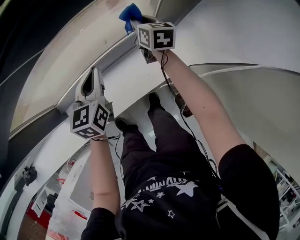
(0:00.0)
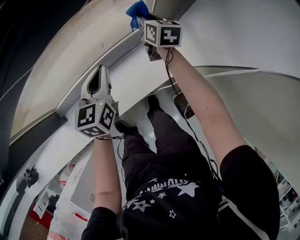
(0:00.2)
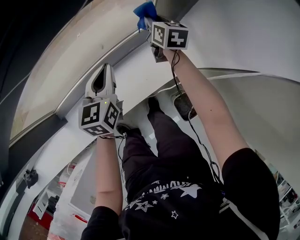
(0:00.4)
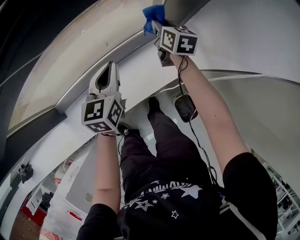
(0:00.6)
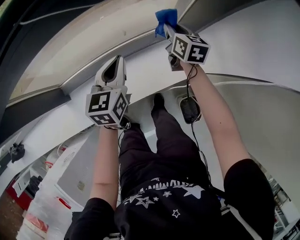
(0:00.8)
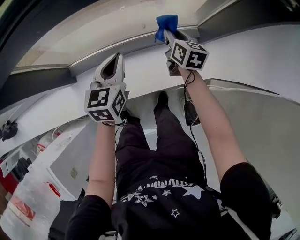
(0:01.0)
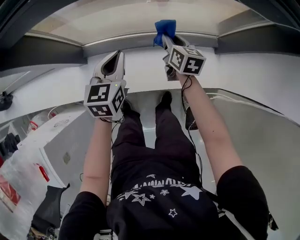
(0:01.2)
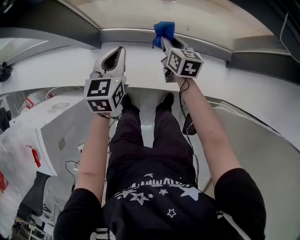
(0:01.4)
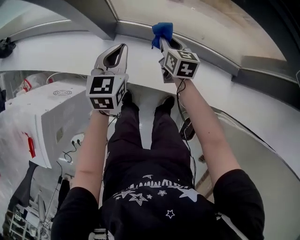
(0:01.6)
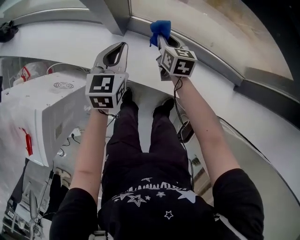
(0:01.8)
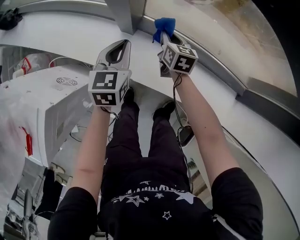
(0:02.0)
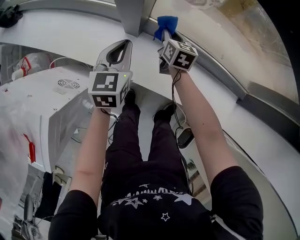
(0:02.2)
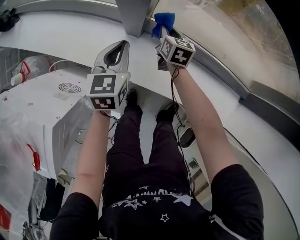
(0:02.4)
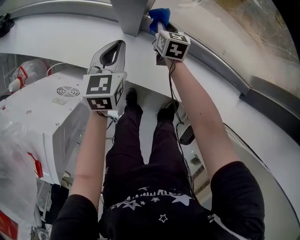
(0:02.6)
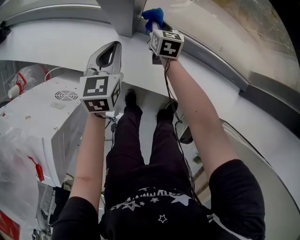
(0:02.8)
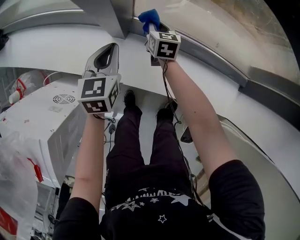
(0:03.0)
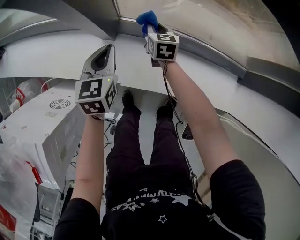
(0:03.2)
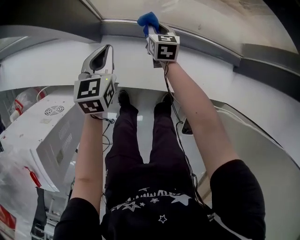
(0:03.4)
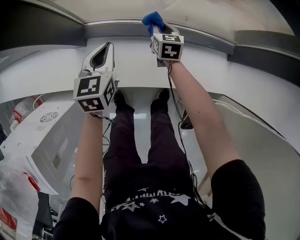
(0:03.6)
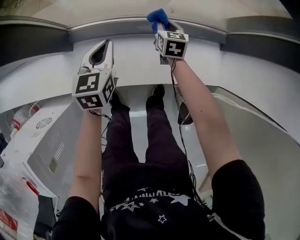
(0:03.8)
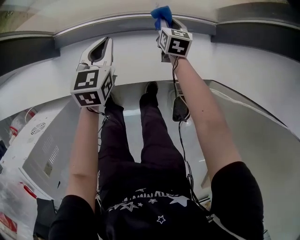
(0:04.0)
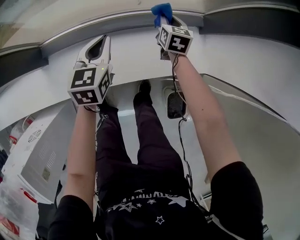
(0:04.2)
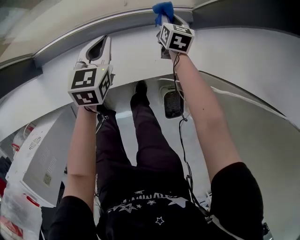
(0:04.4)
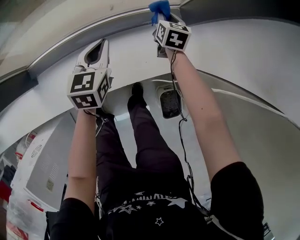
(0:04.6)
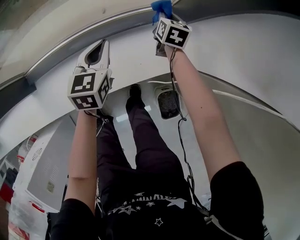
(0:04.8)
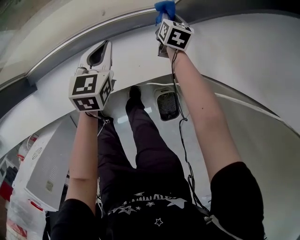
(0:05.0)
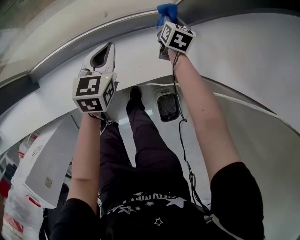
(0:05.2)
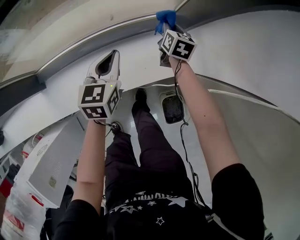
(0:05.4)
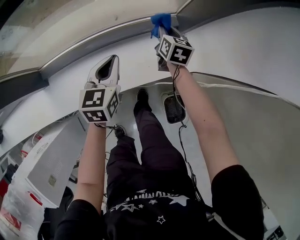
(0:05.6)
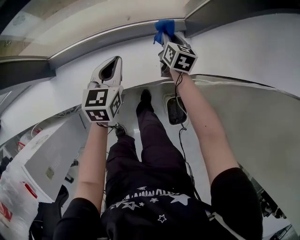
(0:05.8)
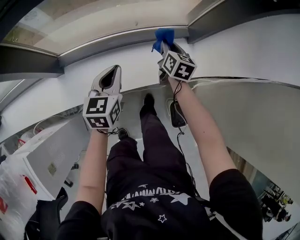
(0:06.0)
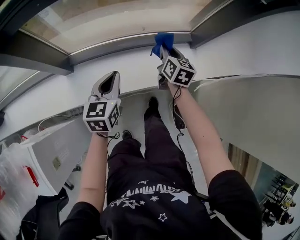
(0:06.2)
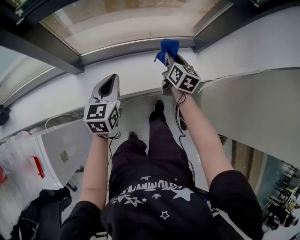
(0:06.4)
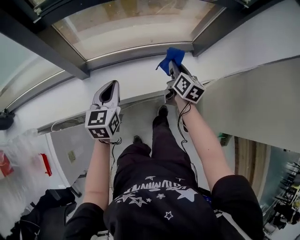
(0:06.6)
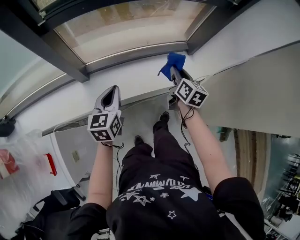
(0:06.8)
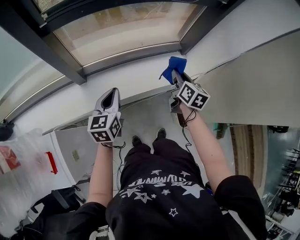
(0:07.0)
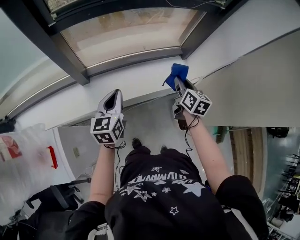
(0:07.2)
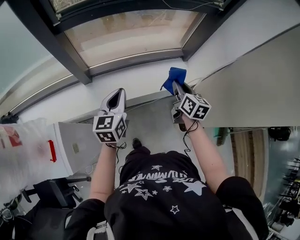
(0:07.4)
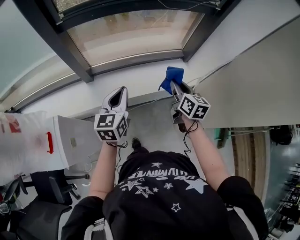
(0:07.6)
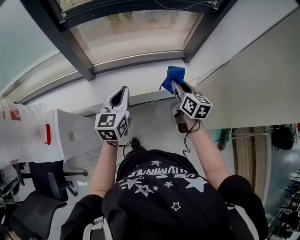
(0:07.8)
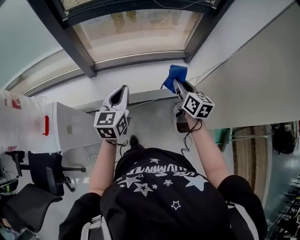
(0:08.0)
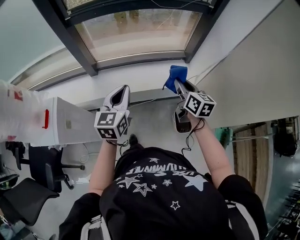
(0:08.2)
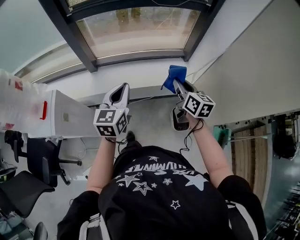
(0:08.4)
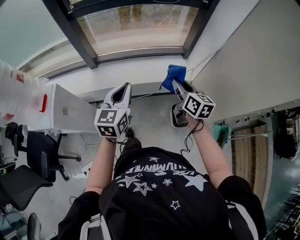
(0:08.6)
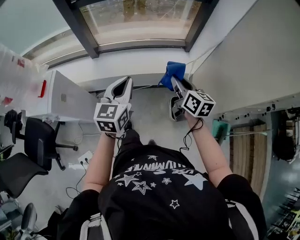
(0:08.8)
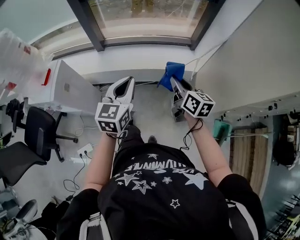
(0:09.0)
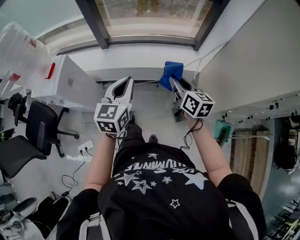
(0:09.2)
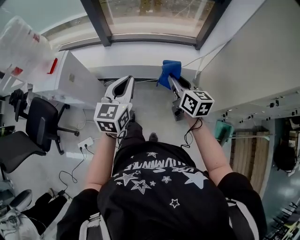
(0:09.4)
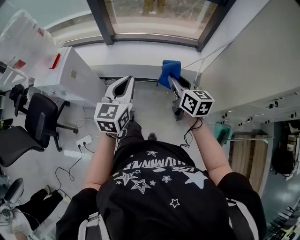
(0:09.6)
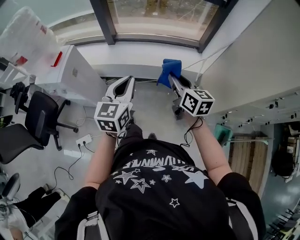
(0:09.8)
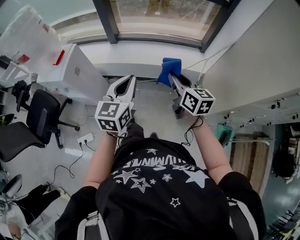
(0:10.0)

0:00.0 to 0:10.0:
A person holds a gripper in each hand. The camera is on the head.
0:00.0 to 0:01.4: The right gripper ends up some 35 cm from where it was, and turns by roughly 30 degrees; the left gripper changes place by about 30 cm, and turns by some 20 degrees.
0:01.4 to 0:02.8: The right gripper goes about 30 cm to the left, forward and downward, while the left gripper goes some 25 cm to the left and downward.
0:02.8 to 0:04.2: The two grippers travel together, approximately 50 cm. The right gripper changes its angle by some 30 degrees. Meanwhile the left gripper rotates about 30 degrees.
0:04.2 to 0:05.8: The left gripper goes about 15 cm to the right, upward and backward, while the right gripper is displaced upward, to the right and backward by approximately 15 cm.
0:05.8 to 0:07.2: The left gripper goes roughly 35 cm backward, upward and to the left. Meanwhile the right gripper heads backward and upward, covering approximately 40 cm.
0:07.2 to 0:08.6: The right gripper goes some 20 cm backward and to the right, and changes its angle by some 20 degrees. Meanwhile the left gripper is displaced backward, to the right and upward by roughly 25 cm.
0:08.6 to 0:10.0: The right gripper heads backward and to the left, covering roughly 15 cm. Meanwhile the left gripper goes about 15 cm backward.

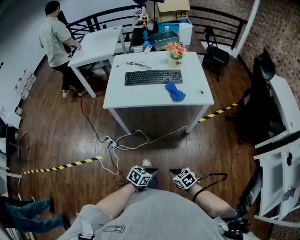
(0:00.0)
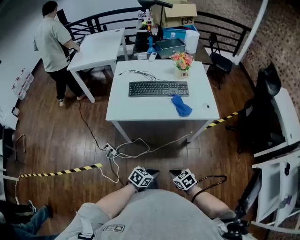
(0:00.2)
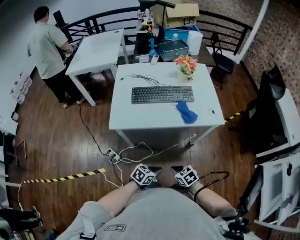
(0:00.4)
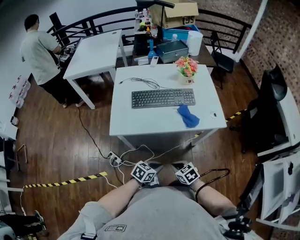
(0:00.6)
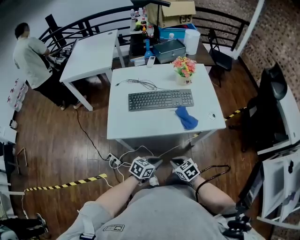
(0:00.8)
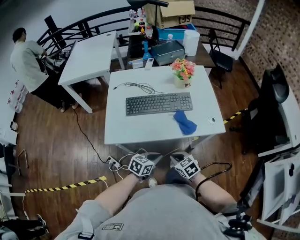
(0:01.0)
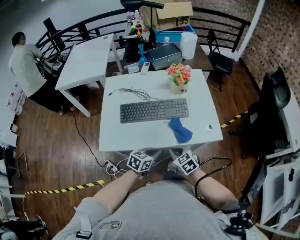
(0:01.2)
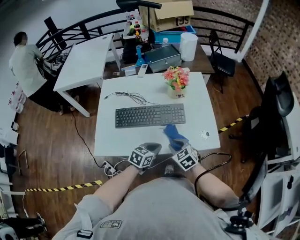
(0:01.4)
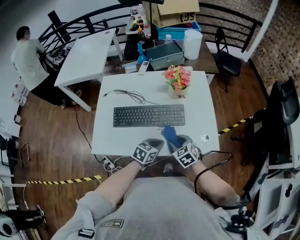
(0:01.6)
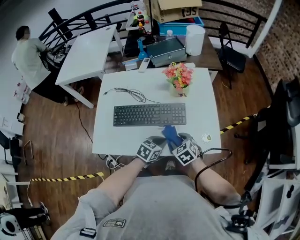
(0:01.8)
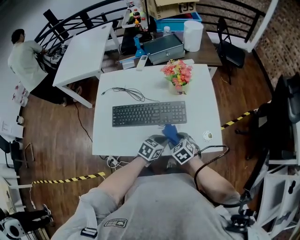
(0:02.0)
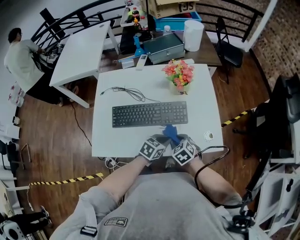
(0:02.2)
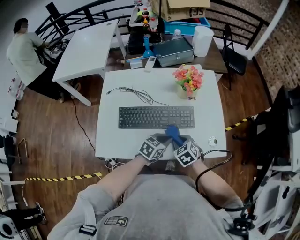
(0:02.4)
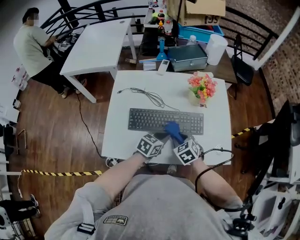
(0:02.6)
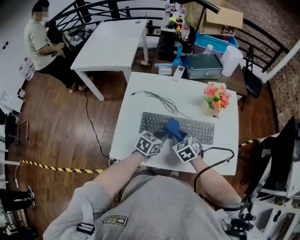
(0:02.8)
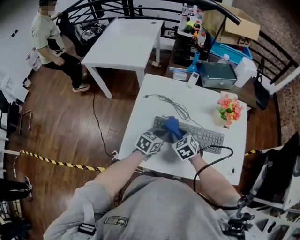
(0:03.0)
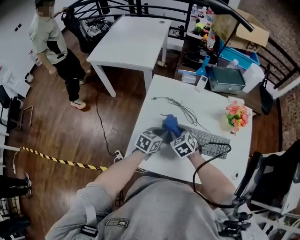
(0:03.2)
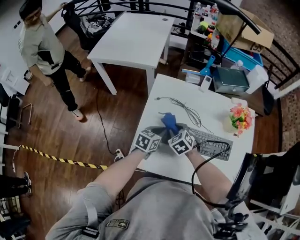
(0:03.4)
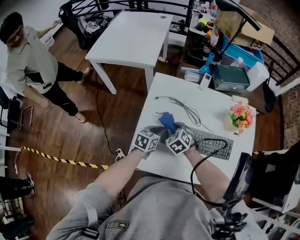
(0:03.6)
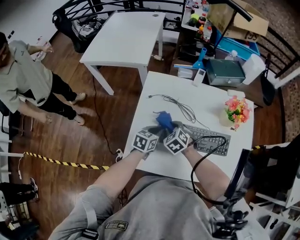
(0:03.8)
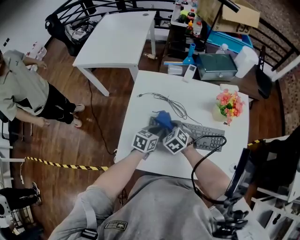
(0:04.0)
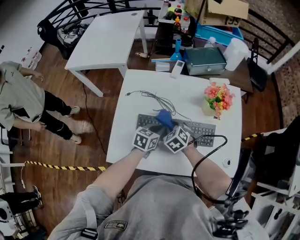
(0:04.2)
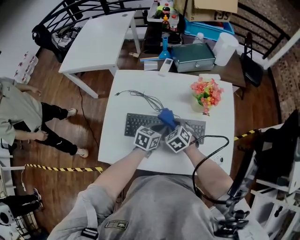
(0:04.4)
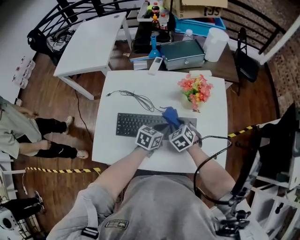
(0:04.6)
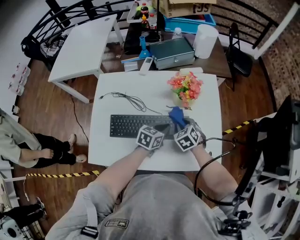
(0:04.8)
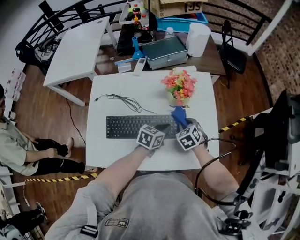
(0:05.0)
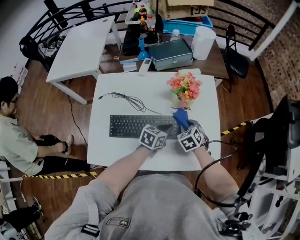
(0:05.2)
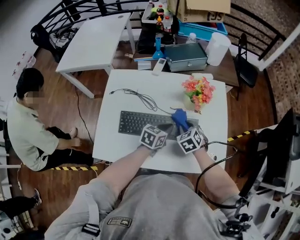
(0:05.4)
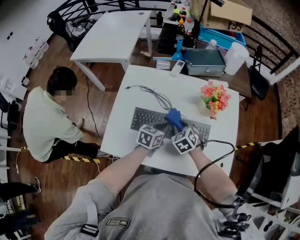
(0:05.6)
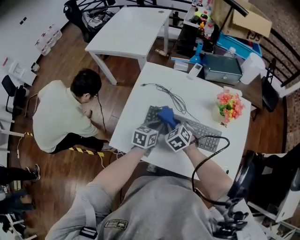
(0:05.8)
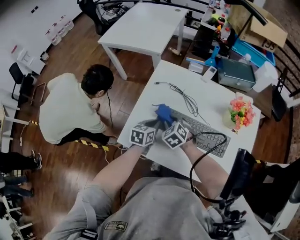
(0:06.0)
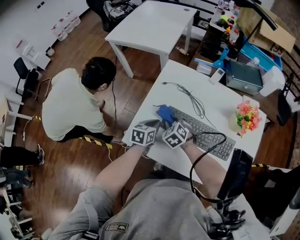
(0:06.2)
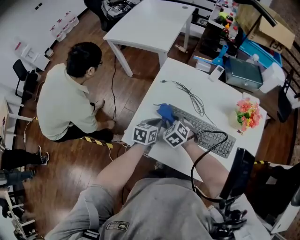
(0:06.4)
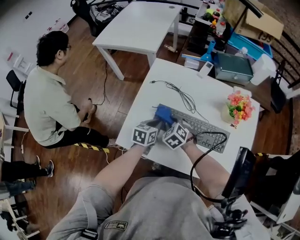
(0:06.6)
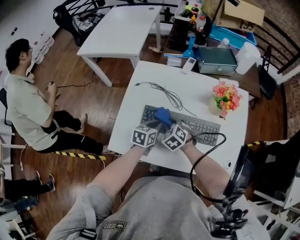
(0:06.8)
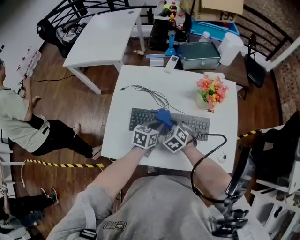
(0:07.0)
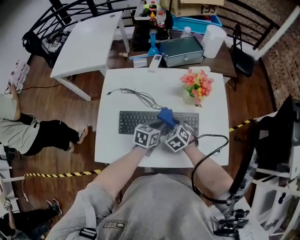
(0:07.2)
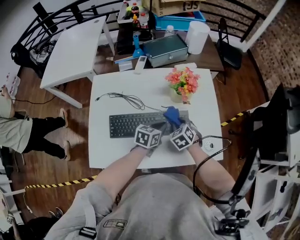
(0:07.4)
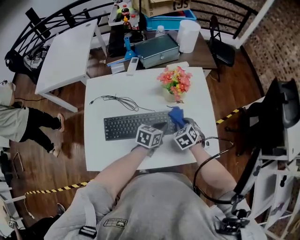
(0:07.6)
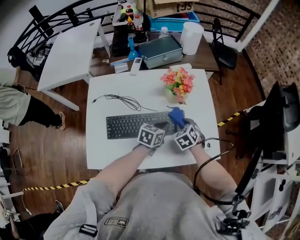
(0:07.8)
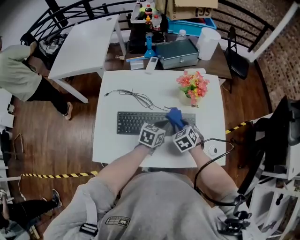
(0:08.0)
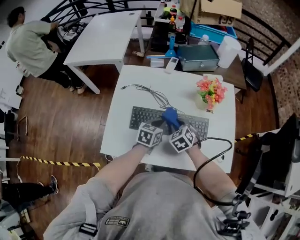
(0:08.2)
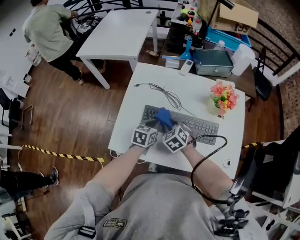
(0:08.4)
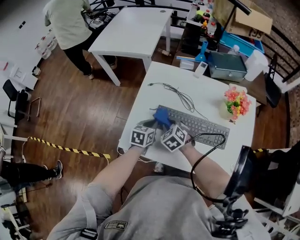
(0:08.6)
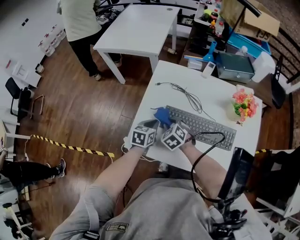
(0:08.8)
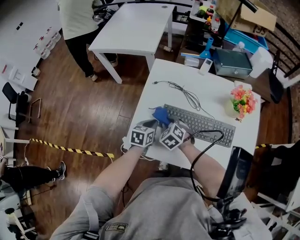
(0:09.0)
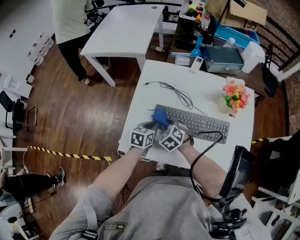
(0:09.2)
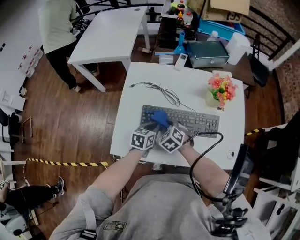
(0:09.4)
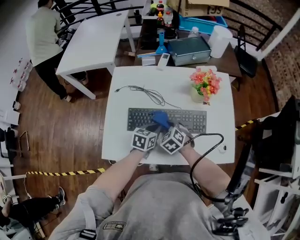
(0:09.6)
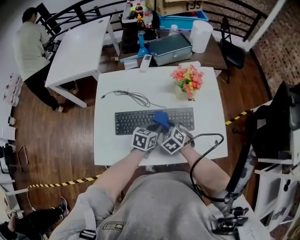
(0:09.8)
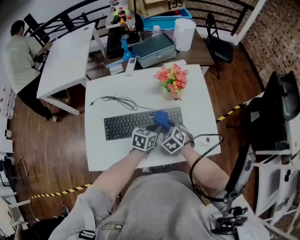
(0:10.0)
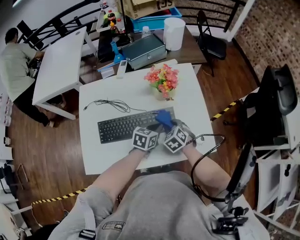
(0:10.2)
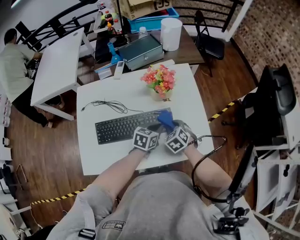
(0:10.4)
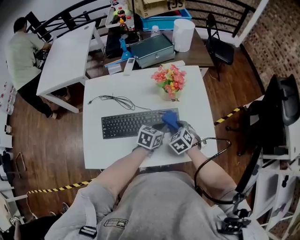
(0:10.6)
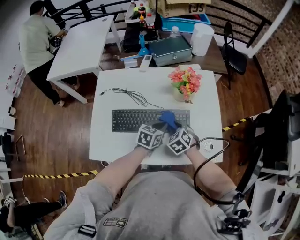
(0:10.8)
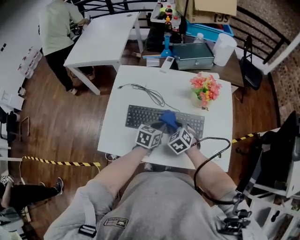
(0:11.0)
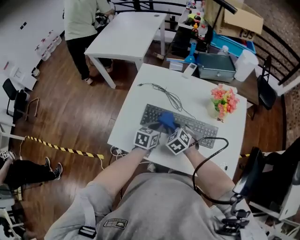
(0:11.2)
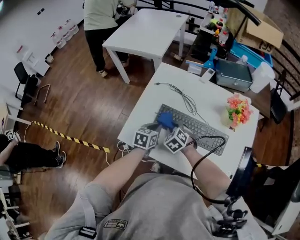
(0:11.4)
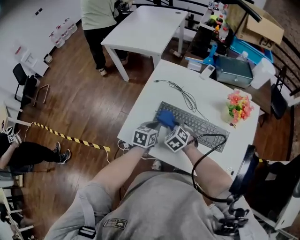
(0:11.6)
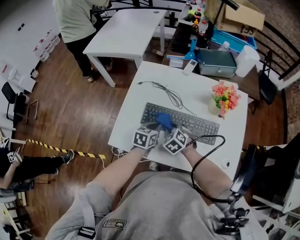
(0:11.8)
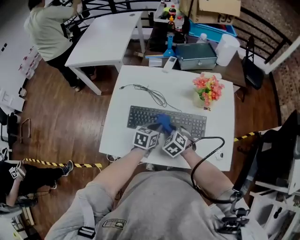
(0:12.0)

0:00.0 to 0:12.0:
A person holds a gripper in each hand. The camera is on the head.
0:00.0 to 0:01.6: The pair of grippers is taken some 50 cm. The right gripper turns by roughly 20 degrees, and opens up.
0:01.6 to 0:03.0: Both grippers move to the left, approximately 25 cm.
0:03.0 to 0:04.4: The two grippers go approximately 10 cm to the right.
0:04.4 to 0:06.0: The left gripper changes place by approximately 20 cm, and changes its angle by about 30 degrees. The right gripper ends up approximately 20 cm from where it was.
0:06.0 to 0:07.6: The left gripper moves roughly 30 cm, and swivels approximately 40 degrees; the right gripper shifts by about 35 cm, and swivels about 40 degrees.
0:07.6 to 0:09.0: The left gripper shifts by some 35 cm, and rotates approximately 30 degrees; the right gripper changes place by some 40 cm, and turns by approximately 40 degrees.
0:09.0 to 0:10.4: The left gripper moves roughly 40 cm, and rotates some 40 degrees. The right gripper moves about 40 cm, and changes its angle by some 30 degrees.
0:10.4 to 0:12.0: The left gripper changes its angle by approximately 20 degrees. The right gripper swivels approximately 20 degrees.

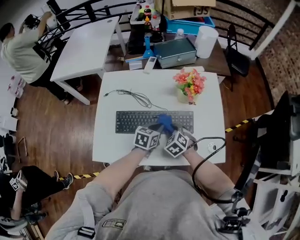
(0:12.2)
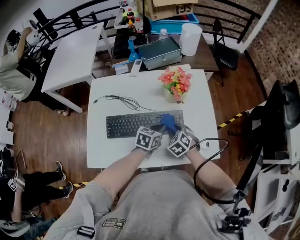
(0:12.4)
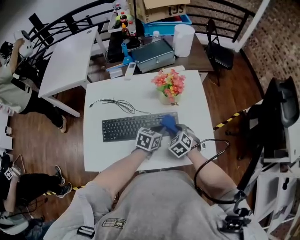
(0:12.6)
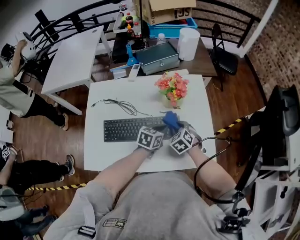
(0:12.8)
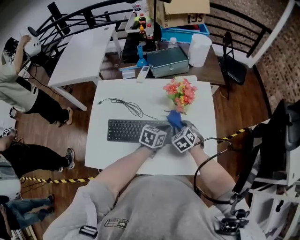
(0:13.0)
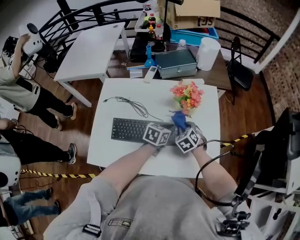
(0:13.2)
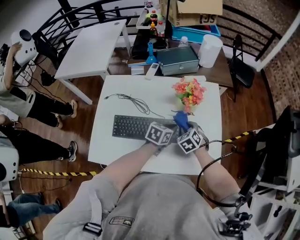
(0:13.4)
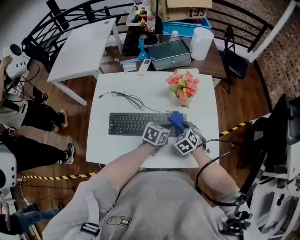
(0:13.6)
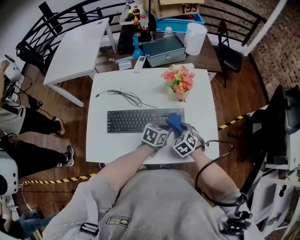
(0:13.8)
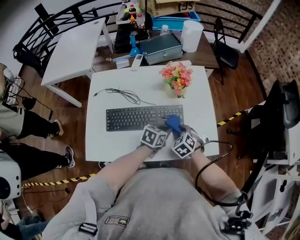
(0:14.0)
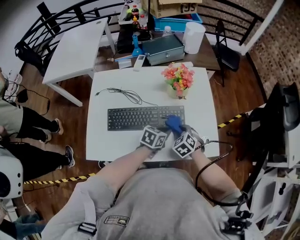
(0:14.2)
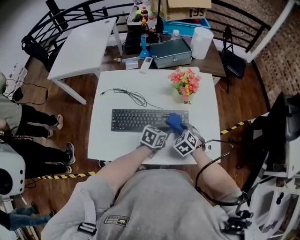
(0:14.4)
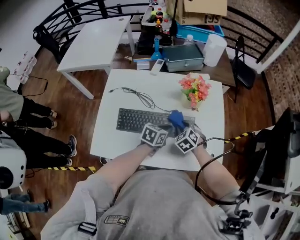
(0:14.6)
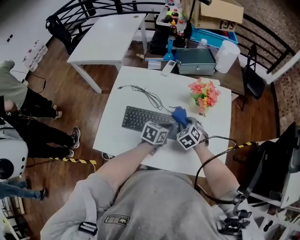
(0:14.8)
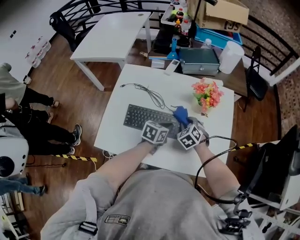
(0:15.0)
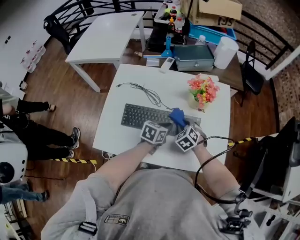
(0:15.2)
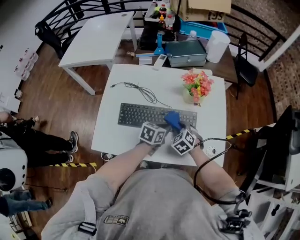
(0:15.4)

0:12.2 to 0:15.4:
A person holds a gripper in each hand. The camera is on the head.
0:12.2 to 0:13.8: Both grippers move to the right, some 10 cm. The right gripper goes forward and returns, approximately 10 cm each way.
0:13.8 to 0:15.4: The two grippers go about 5 cm to the left.
